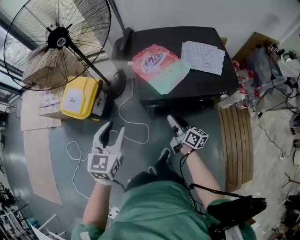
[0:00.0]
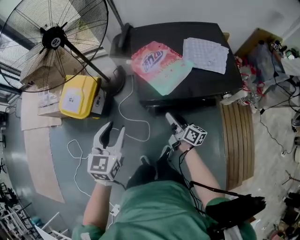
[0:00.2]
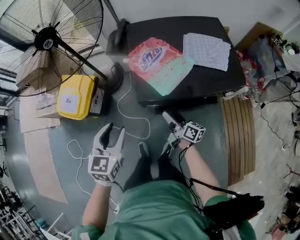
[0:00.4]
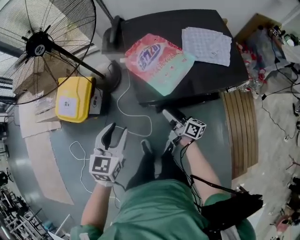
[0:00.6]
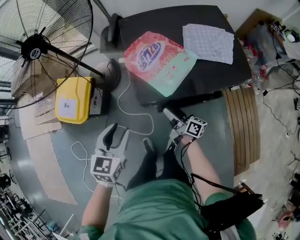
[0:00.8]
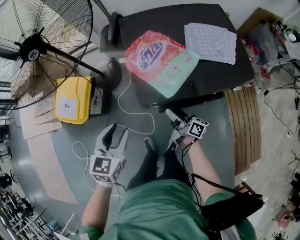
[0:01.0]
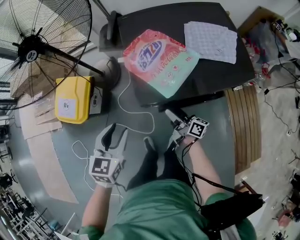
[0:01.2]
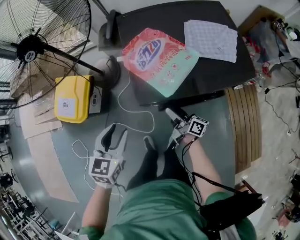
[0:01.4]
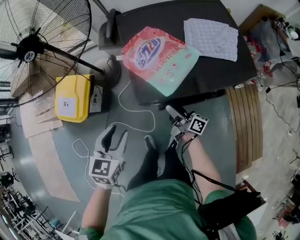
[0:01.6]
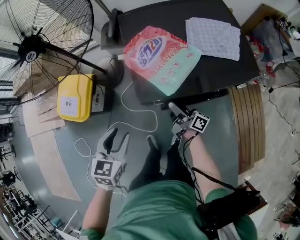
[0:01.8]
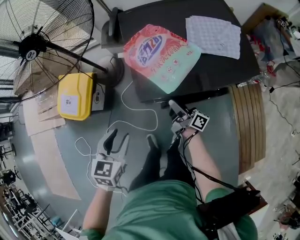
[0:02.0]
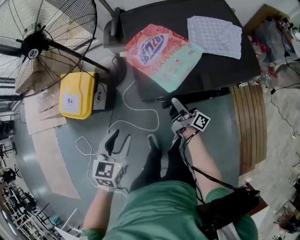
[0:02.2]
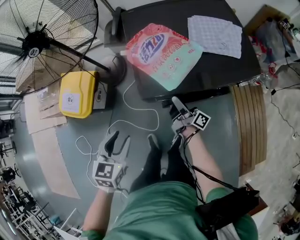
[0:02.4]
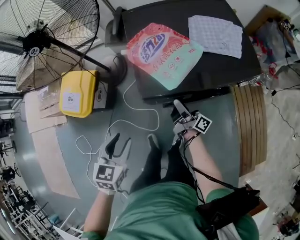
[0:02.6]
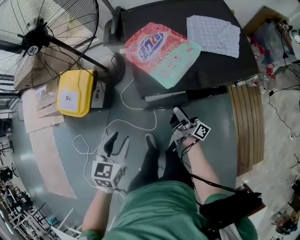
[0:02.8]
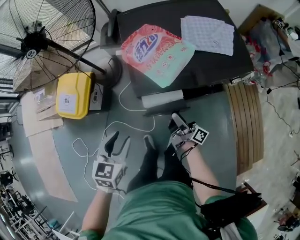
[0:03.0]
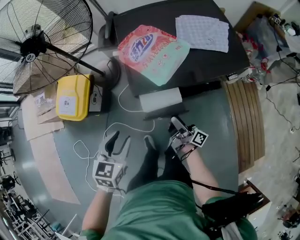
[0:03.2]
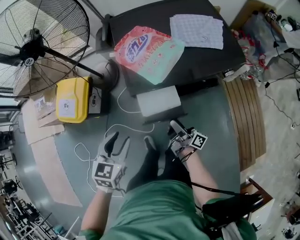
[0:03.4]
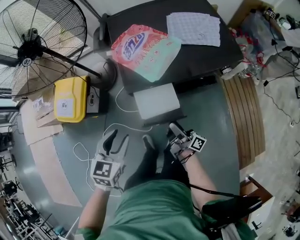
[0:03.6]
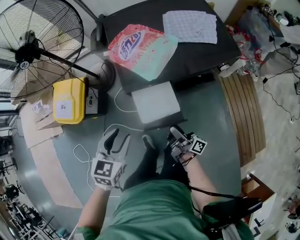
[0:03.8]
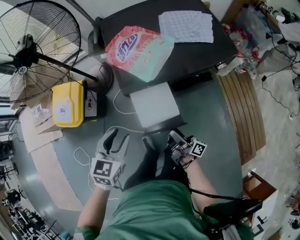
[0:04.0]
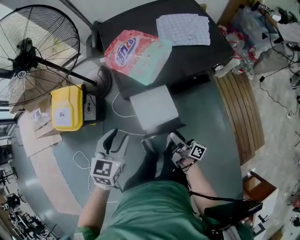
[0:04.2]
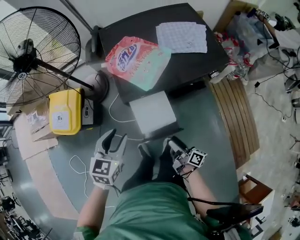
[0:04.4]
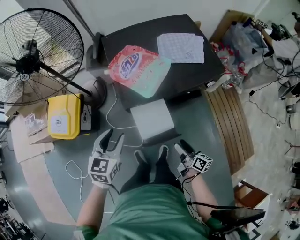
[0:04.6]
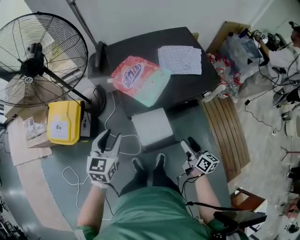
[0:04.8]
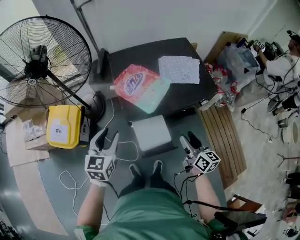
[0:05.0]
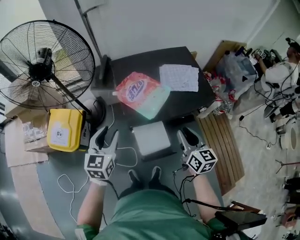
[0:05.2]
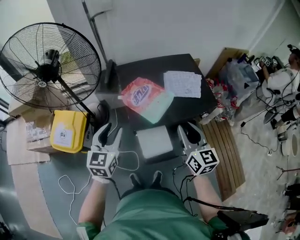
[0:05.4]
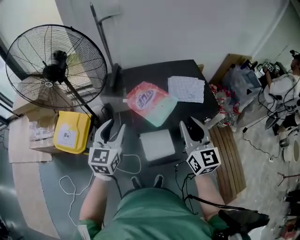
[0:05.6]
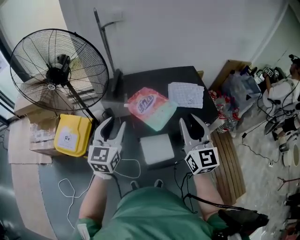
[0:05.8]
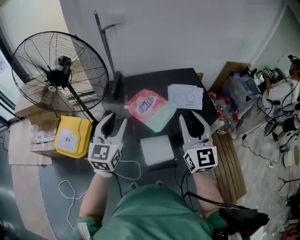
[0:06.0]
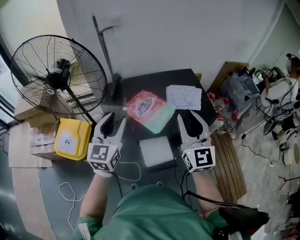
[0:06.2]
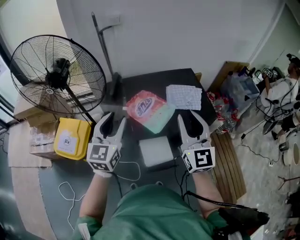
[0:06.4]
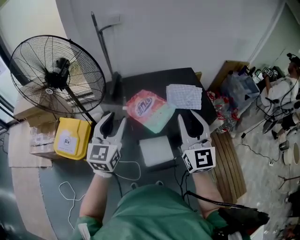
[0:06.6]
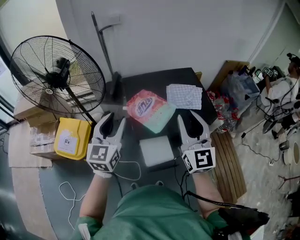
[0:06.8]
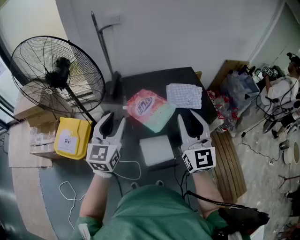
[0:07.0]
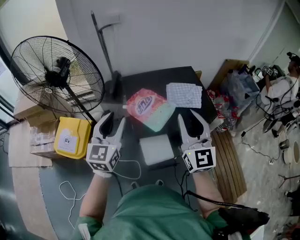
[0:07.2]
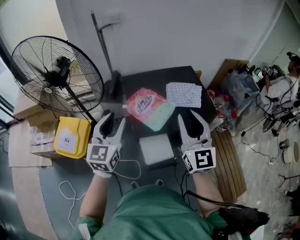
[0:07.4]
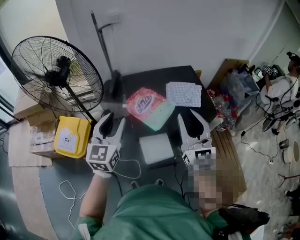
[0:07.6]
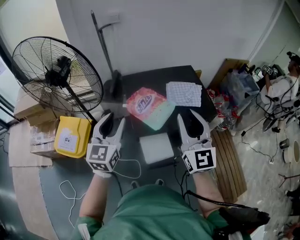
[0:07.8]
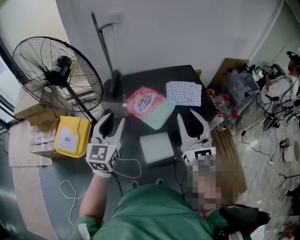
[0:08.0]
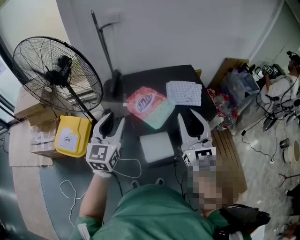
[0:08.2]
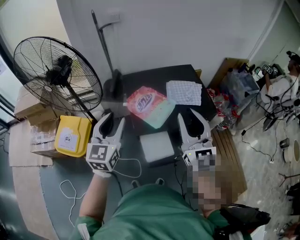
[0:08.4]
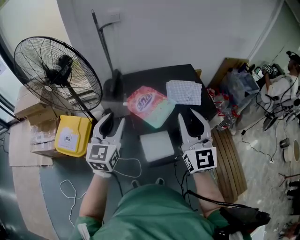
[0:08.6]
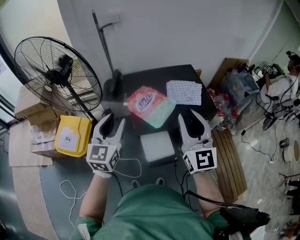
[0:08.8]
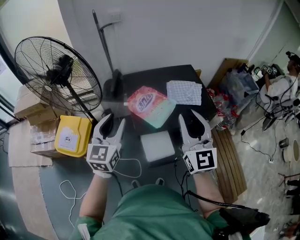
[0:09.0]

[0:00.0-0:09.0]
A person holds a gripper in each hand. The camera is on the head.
0.0 to 1.6 s: The right gripper travels forward and downward by about 10 cm, rotates roughly 20 degrees, and opens up; the left gripper travels downward and forward by approximately 15 cm.
1.6 to 3.0 s: The two grippers go some 5 cm backward.
3.0 to 4.4 s: The right gripper travels backward by roughly 15 cm, and changes its angle by some 20 degrees.
4.4 to 6.0 s: The right gripper heads upward, covering approximately 50 cm, rotates around the line of its fingers by some 80 degrees, counterclockwise from behind, and closes up, while the left gripper heads upward and forward, covering about 25 cm, and tilts its fingers some 30 degrees upward.
6.0 to 7.6 s: Neither gripper changes place.
7.6 to 9.0 s: The grippers move only a little.

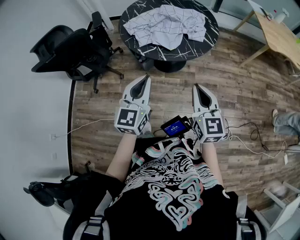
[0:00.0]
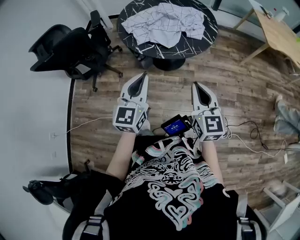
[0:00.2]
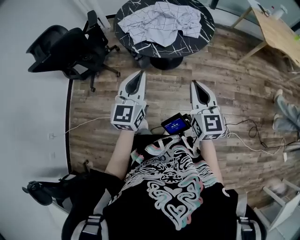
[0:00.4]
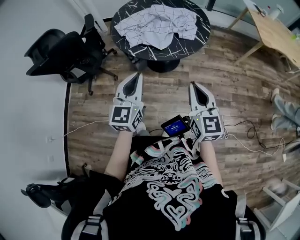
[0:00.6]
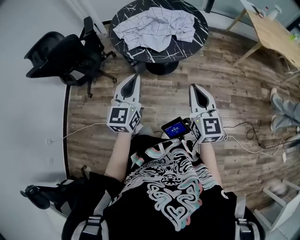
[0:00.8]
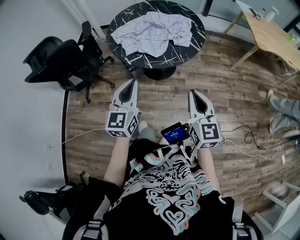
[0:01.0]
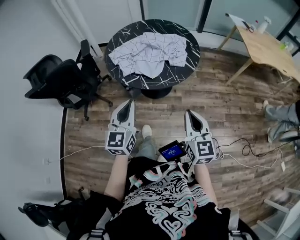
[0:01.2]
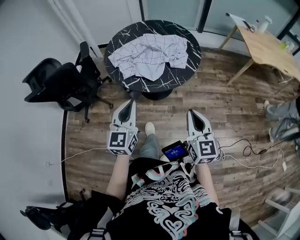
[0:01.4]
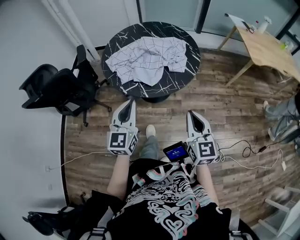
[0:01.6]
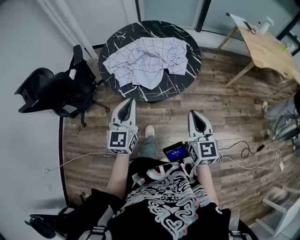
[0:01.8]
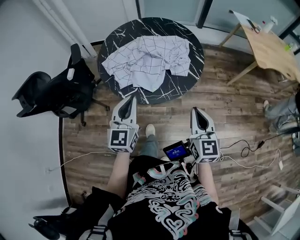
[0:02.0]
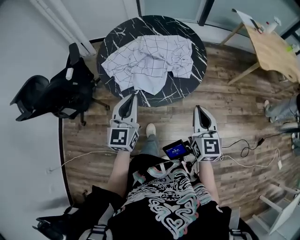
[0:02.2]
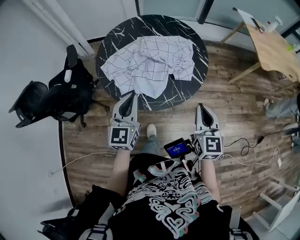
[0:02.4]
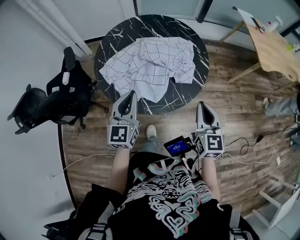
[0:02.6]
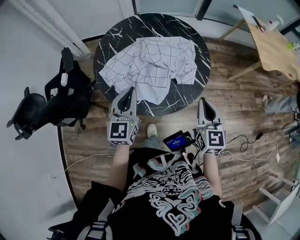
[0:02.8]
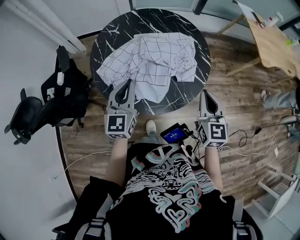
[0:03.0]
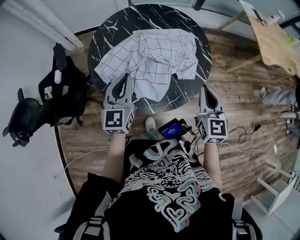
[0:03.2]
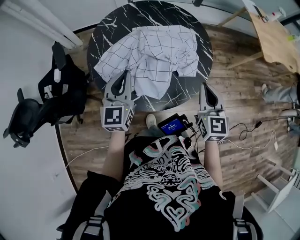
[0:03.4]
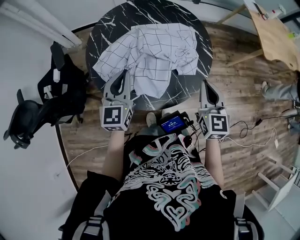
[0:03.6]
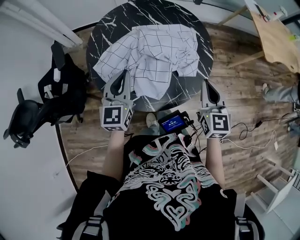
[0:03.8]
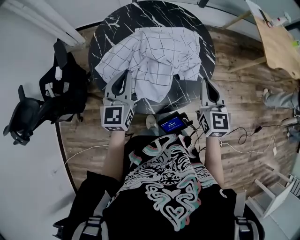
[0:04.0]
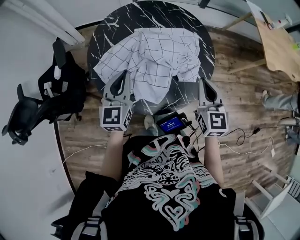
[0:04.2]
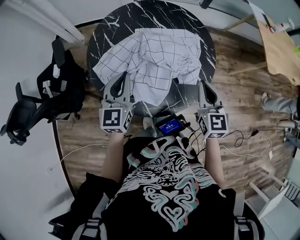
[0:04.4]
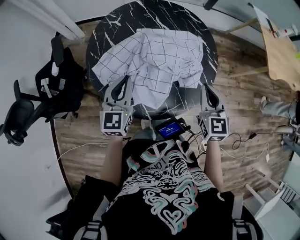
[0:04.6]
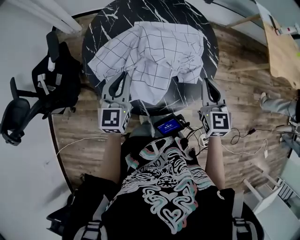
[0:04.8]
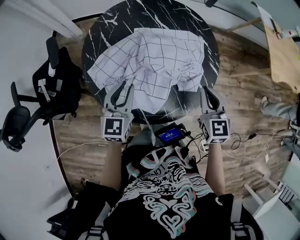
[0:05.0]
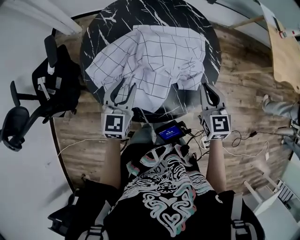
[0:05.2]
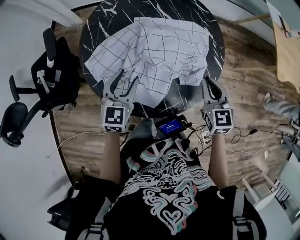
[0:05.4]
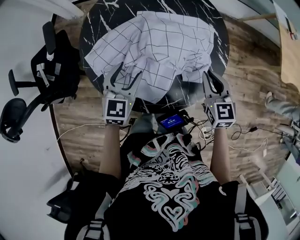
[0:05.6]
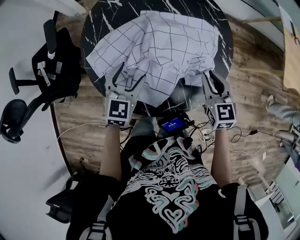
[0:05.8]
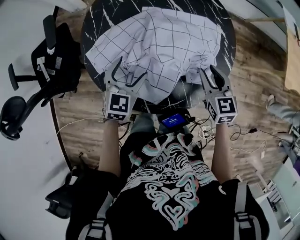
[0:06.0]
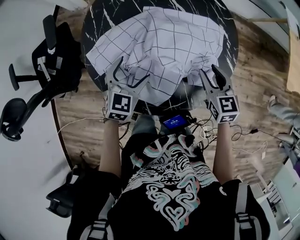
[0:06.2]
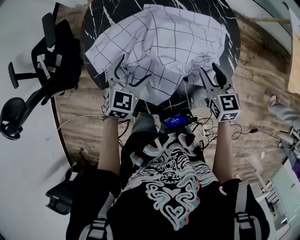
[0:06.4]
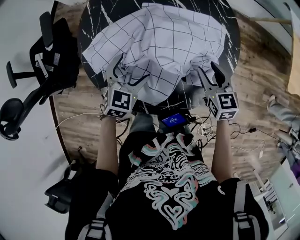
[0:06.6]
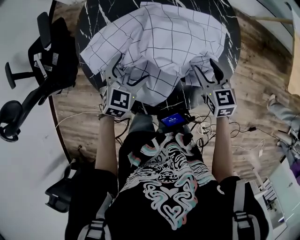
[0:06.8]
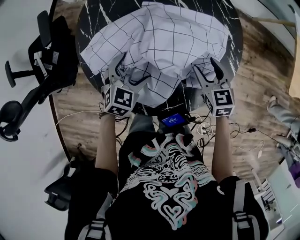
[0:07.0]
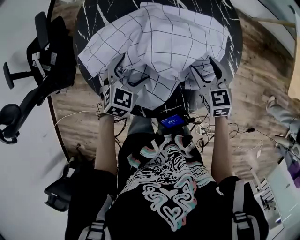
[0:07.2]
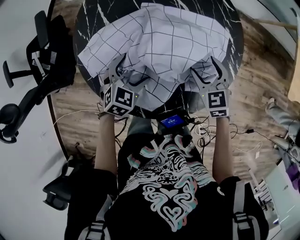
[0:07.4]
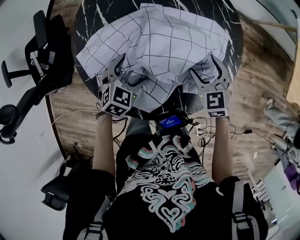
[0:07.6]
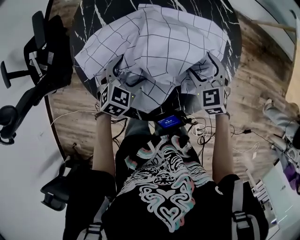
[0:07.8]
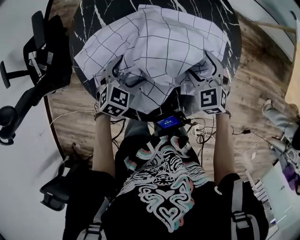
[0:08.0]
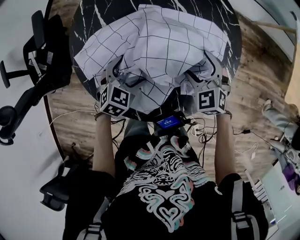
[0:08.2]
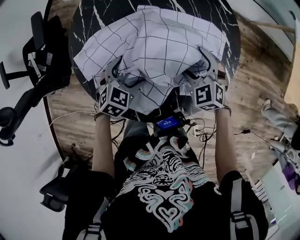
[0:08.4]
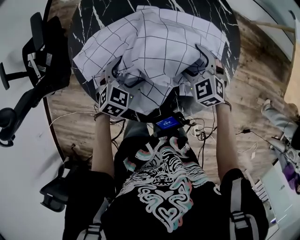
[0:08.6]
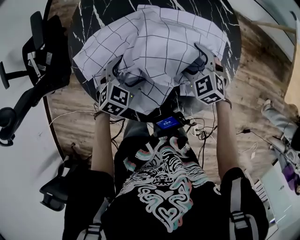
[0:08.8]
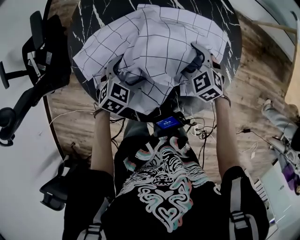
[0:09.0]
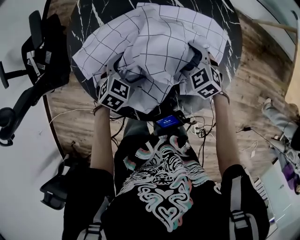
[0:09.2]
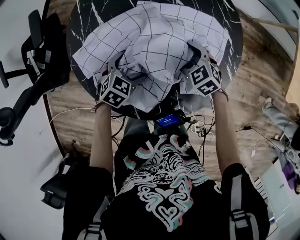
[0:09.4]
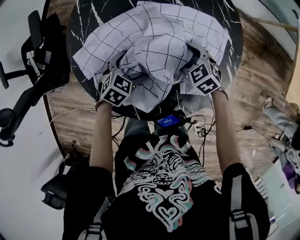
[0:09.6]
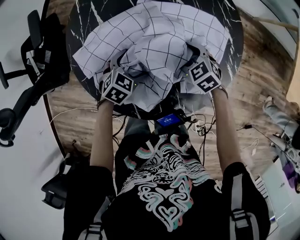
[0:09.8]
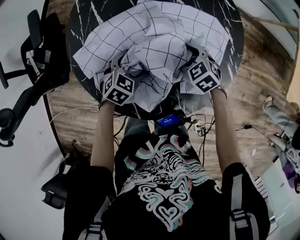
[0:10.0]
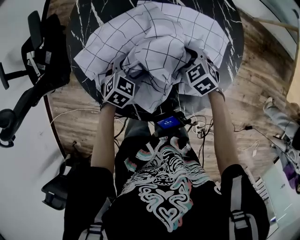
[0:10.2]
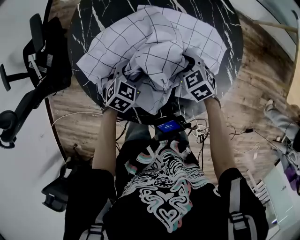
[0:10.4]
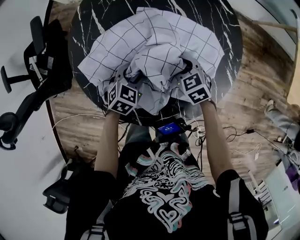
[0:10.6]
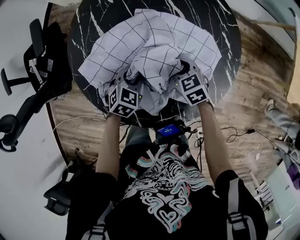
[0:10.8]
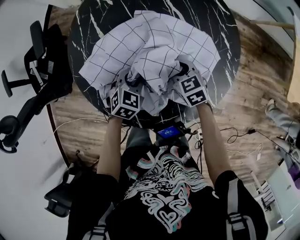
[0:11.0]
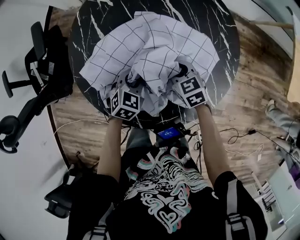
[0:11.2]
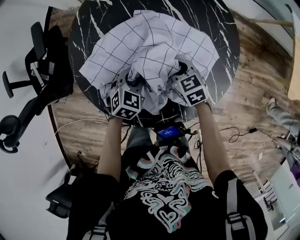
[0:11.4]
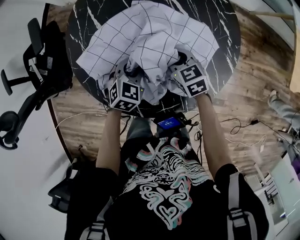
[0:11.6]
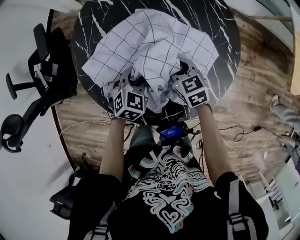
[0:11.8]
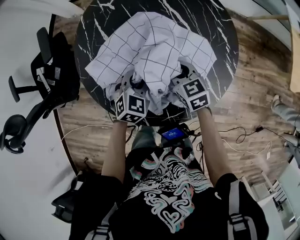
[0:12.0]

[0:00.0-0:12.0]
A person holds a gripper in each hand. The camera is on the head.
0.0 to 1.6 s: The left gripper shifts approximately 10 cm forward. Meanwhile the right gripper goes approximately 10 cm to the right and forward.
1.6 to 3.0 s: The two grippers go about 25 cm forward.
3.0 to 4.4 s: Both grippers travel together forward, some 5 cm.
4.4 to 6.0 s: The left gripper travels downward by approximately 15 cm, turns by about 30 degrees, and opens its fingers. Meanwhile the right gripper travels downward and forward by roughly 15 cm, and swivels roughly 20 degrees.
6.0 to 7.6 s: The left gripper heads downward, covering roughly 10 cm. Meanwhile the right gripper goes approximately 10 cm downward and forward, changes its angle by about 20 degrees, and opens.
7.6 to 9.0 s: The right gripper moves downward, roughly 5 cm, and rotates roughly 20 degrees.
9.0 to 10.4 s: The left gripper closes up. The right gripper closes its fingers.
10.4 to 12.0 s: Both grippers travel together upward, about 5 cm. The right gripper changes its angle by approximately 20 degrees.

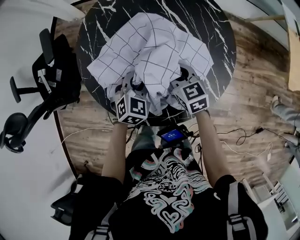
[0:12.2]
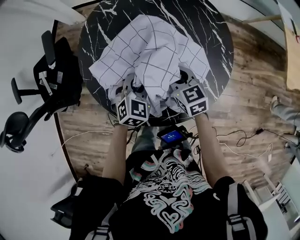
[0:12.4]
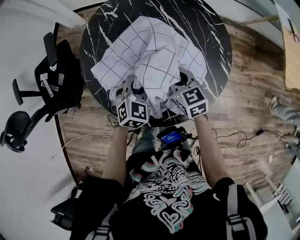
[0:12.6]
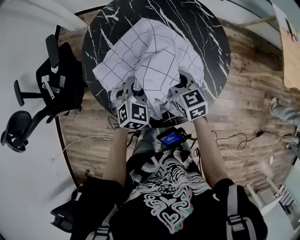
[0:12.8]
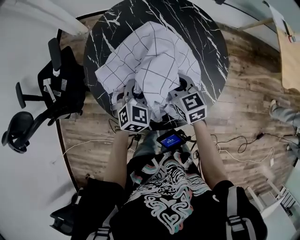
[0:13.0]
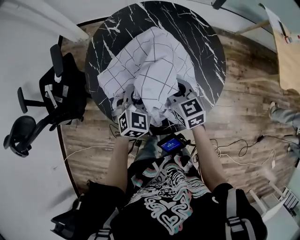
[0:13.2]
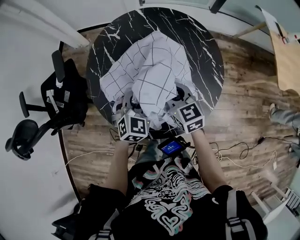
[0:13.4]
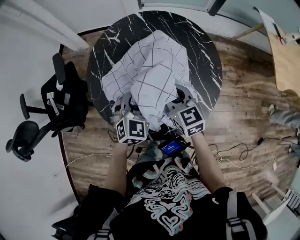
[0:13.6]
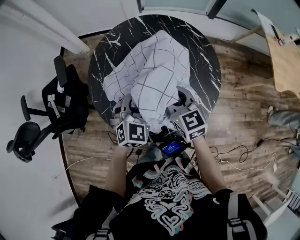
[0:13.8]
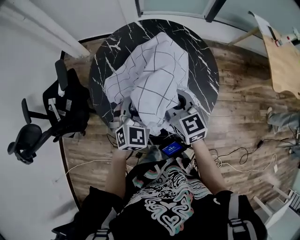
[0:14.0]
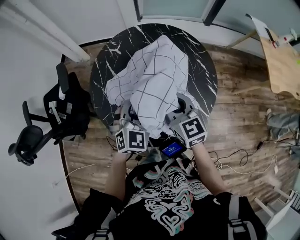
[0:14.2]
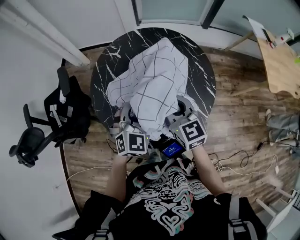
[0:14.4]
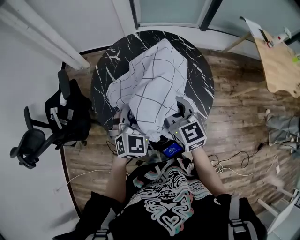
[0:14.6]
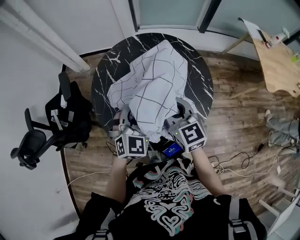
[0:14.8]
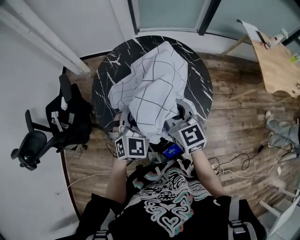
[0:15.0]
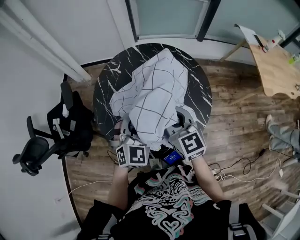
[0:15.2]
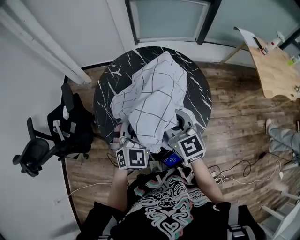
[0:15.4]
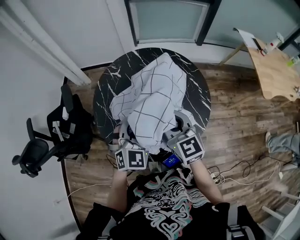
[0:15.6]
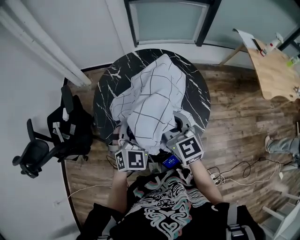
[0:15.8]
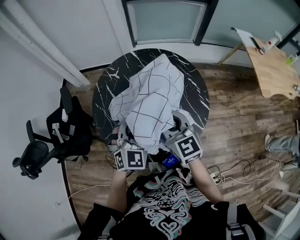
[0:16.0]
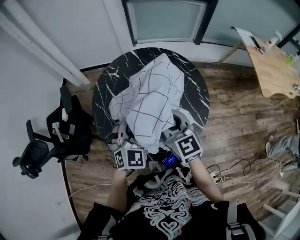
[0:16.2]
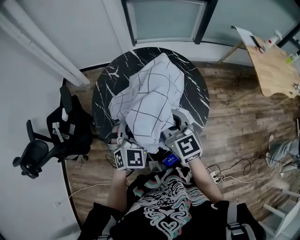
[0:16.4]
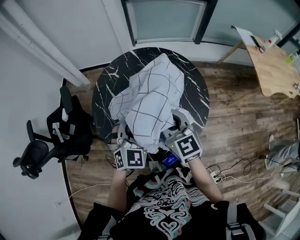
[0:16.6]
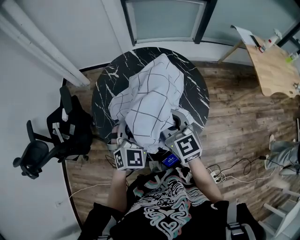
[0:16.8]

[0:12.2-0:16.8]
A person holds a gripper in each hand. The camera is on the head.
12.2 to 13.8 s: Both grippers travel together upward, some 15 cm.
13.8 to 15.2 s: Both grippers travel together upward, about 10 cm.
15.2 to 16.8 s: Neither gripper changes place.
